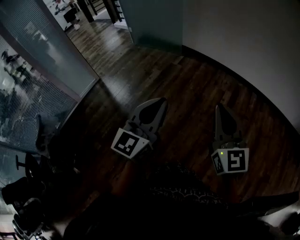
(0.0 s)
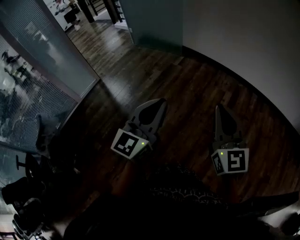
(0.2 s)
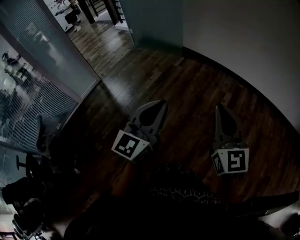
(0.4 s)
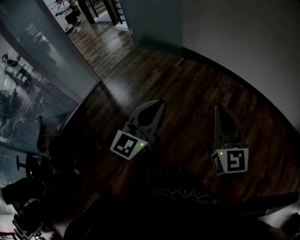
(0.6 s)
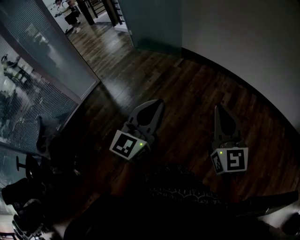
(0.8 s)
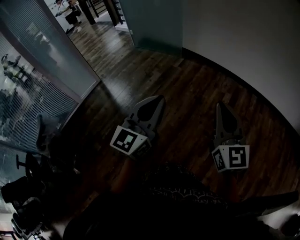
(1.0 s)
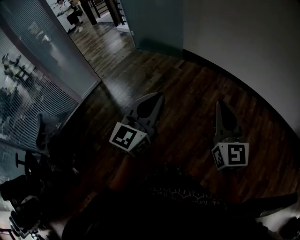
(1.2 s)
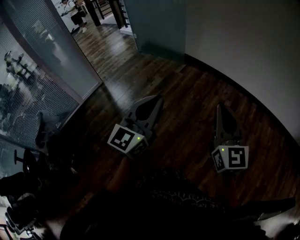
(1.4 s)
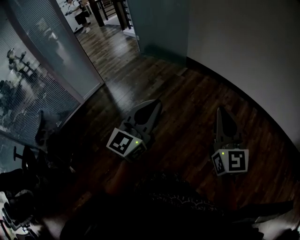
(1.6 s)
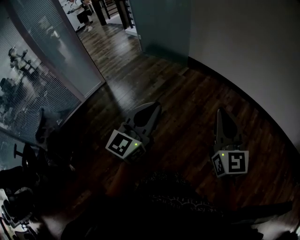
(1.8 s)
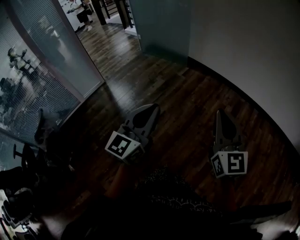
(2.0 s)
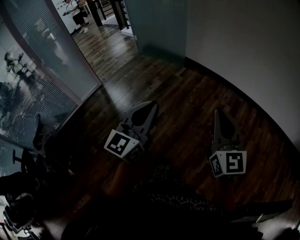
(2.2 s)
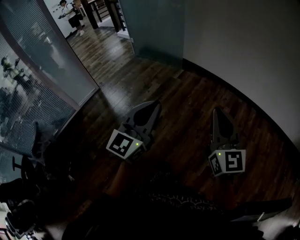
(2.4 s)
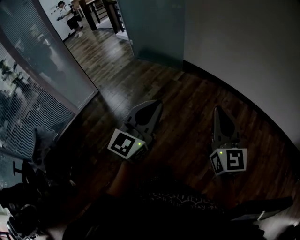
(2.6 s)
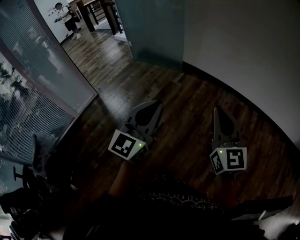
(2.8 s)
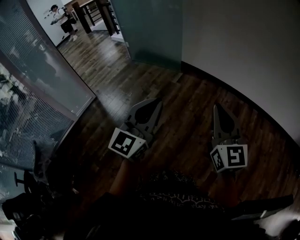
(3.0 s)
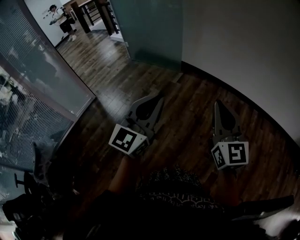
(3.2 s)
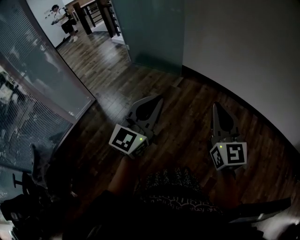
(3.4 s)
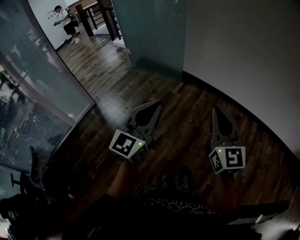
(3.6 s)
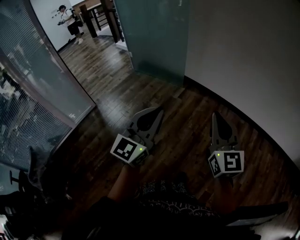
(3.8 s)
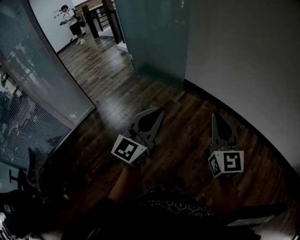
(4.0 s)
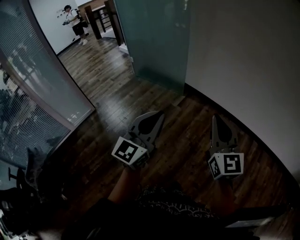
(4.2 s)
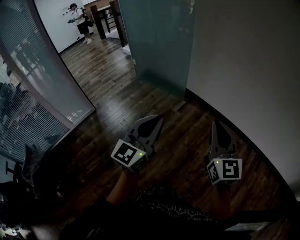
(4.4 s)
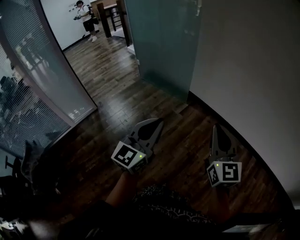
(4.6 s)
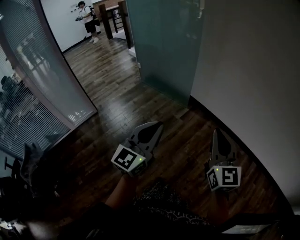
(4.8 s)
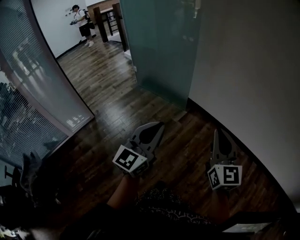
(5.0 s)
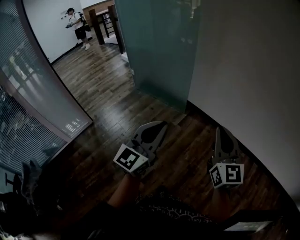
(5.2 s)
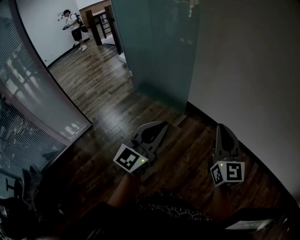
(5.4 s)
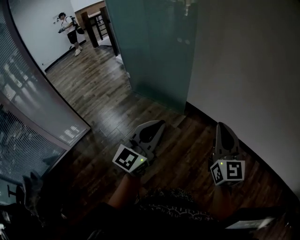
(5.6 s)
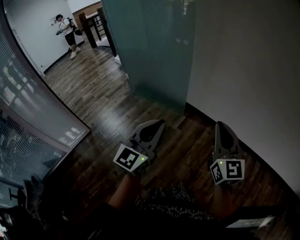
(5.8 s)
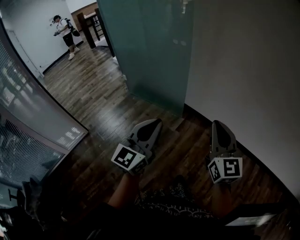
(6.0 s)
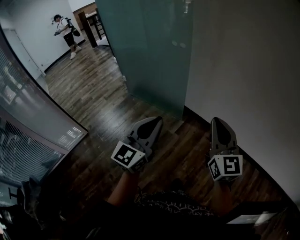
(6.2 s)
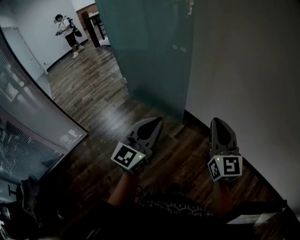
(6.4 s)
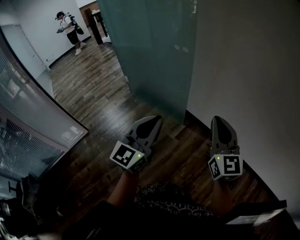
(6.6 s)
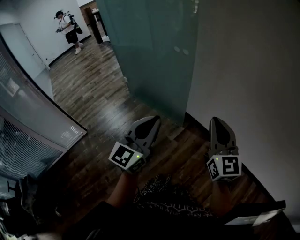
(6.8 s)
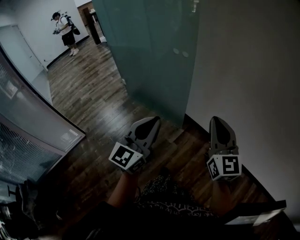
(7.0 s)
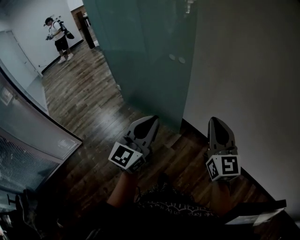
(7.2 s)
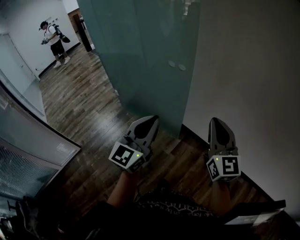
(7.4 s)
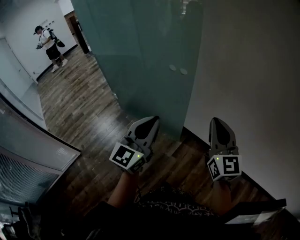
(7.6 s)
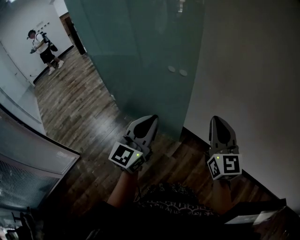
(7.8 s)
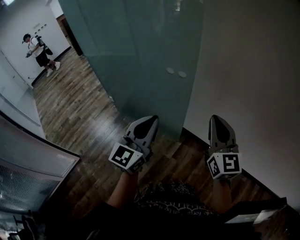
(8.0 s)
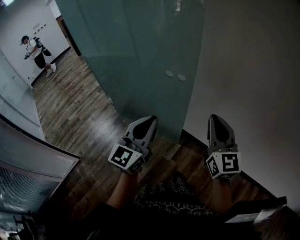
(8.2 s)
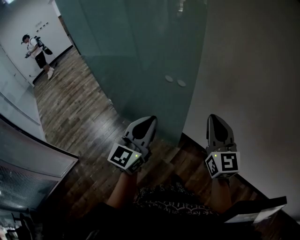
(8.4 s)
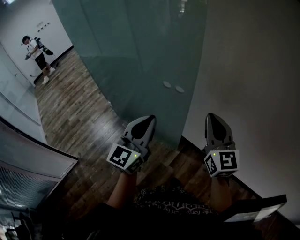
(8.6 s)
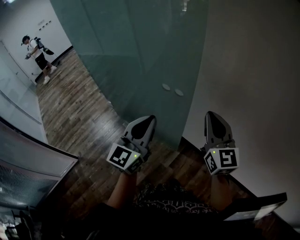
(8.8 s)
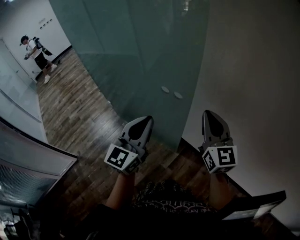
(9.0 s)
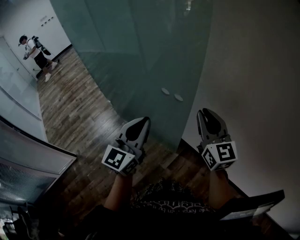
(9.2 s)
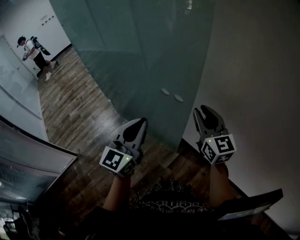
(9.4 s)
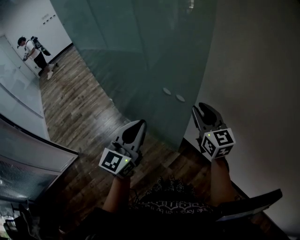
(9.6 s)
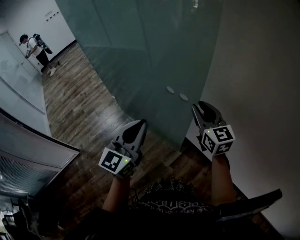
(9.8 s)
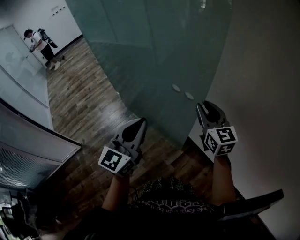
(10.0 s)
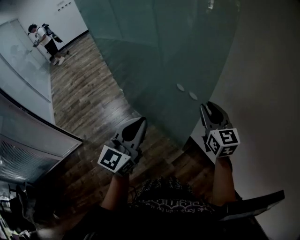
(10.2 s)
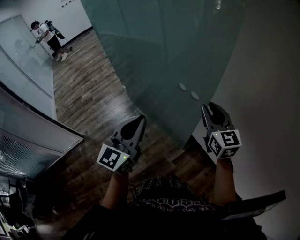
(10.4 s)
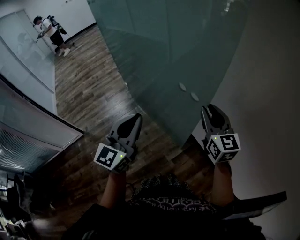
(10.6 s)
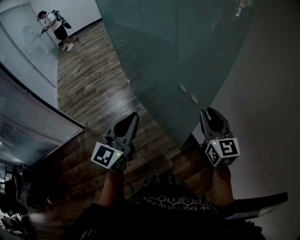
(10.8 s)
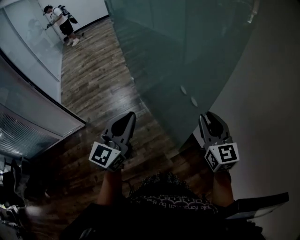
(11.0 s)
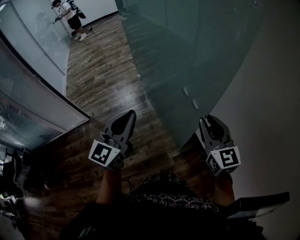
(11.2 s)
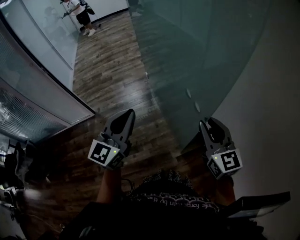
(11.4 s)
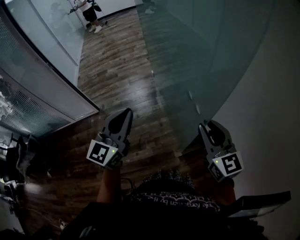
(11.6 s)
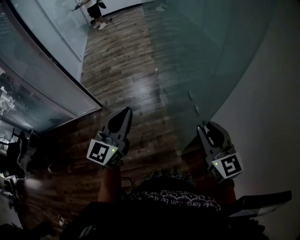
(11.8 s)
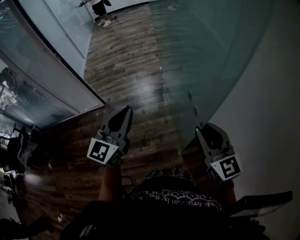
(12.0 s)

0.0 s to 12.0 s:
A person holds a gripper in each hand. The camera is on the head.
0.0 to 1.6 s: The grippers make only small movements.
1.6 to 3.0 s: Both grippers move forward, some 20 cm.
3.0 to 4.4 s: The grippers both shift forward by approximately 25 cm.
4.4 to 6.0 s: Both grippers travel together forward, about 30 cm.
6.0 to 7.6 s: Both grippers move forward, about 35 cm.
7.6 to 9.0 s: The two grippers go some 20 cm forward.
9.0 to 10.4 s: The left gripper goes about 5 cm to the left, while the right gripper moves forward and downward, about 10 cm, and opens up.
10.4 to 12.0 s: The right gripper changes place by about 20 cm, and changes its angle by roughly 30 degrees, while the left gripper shifts by about 20 cm, and changes its angle by about 30 degrees.

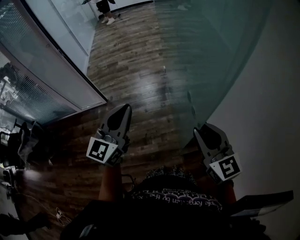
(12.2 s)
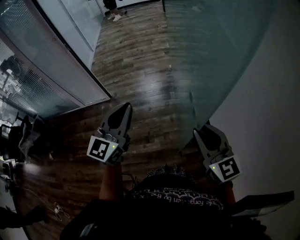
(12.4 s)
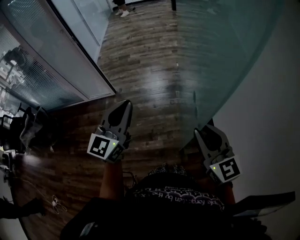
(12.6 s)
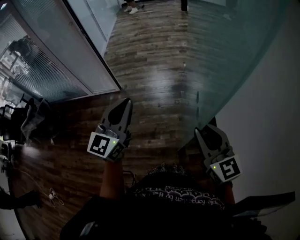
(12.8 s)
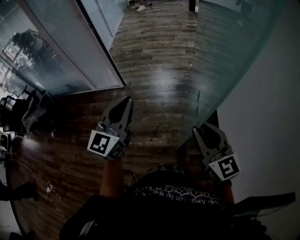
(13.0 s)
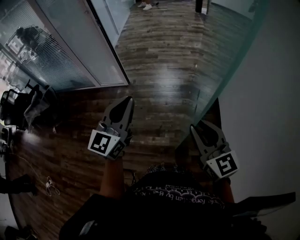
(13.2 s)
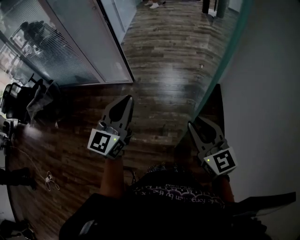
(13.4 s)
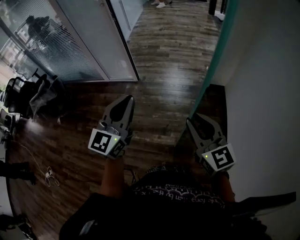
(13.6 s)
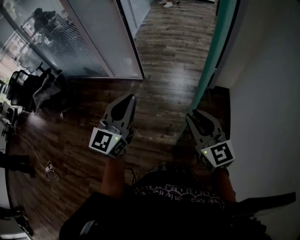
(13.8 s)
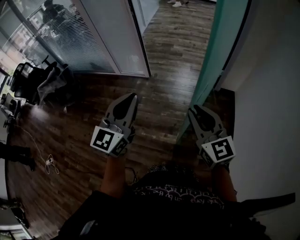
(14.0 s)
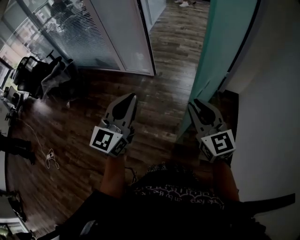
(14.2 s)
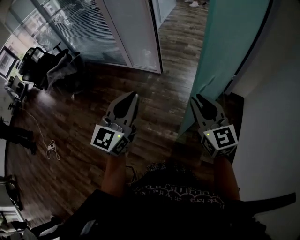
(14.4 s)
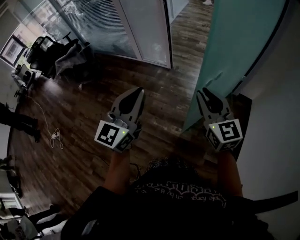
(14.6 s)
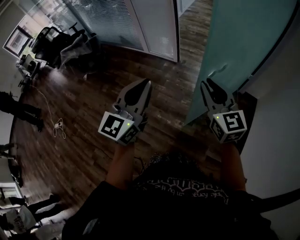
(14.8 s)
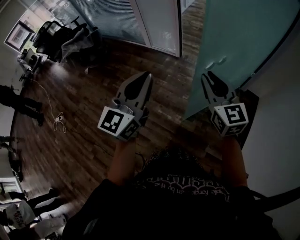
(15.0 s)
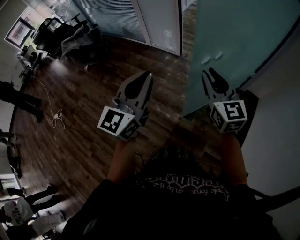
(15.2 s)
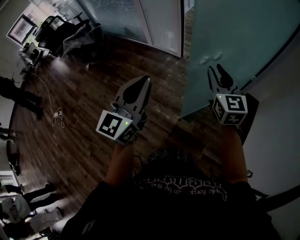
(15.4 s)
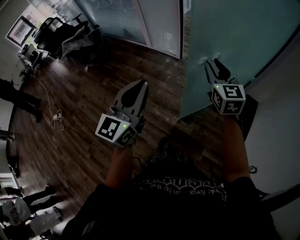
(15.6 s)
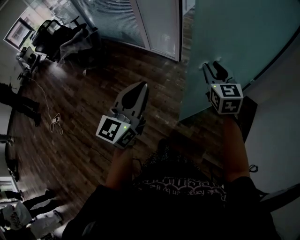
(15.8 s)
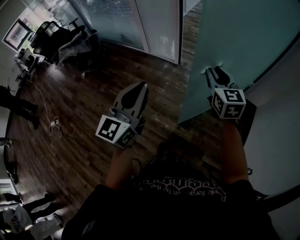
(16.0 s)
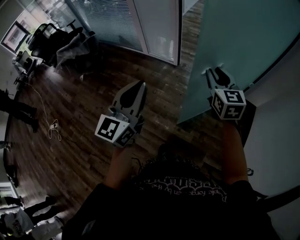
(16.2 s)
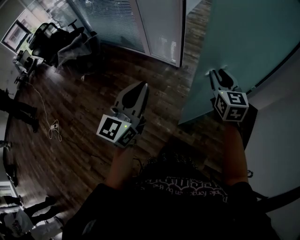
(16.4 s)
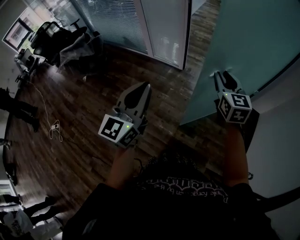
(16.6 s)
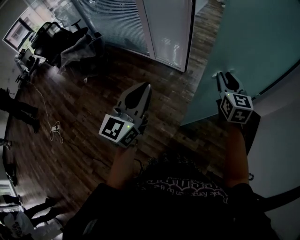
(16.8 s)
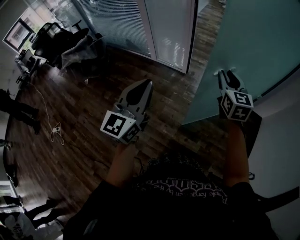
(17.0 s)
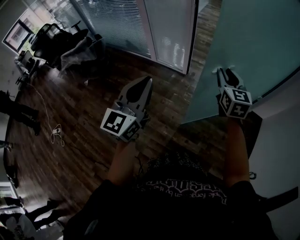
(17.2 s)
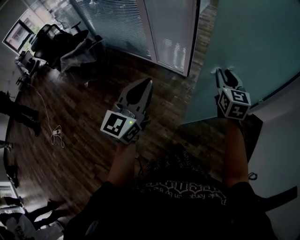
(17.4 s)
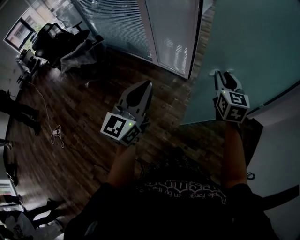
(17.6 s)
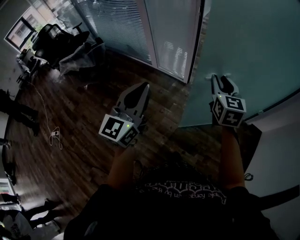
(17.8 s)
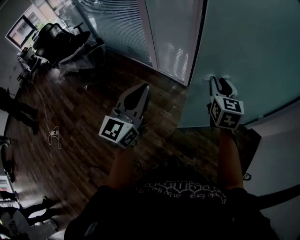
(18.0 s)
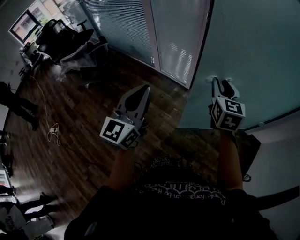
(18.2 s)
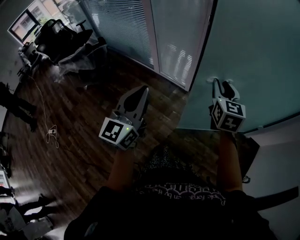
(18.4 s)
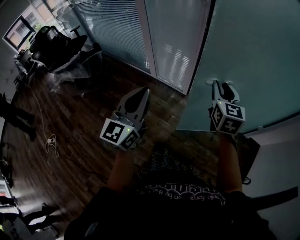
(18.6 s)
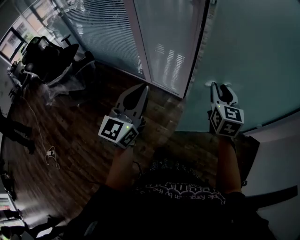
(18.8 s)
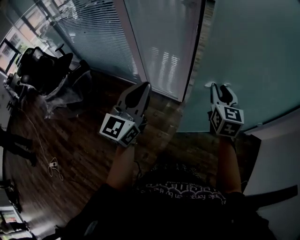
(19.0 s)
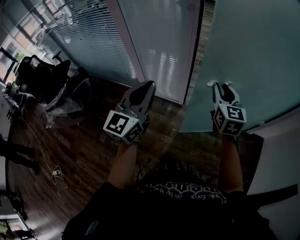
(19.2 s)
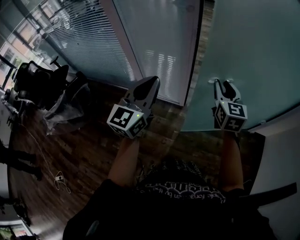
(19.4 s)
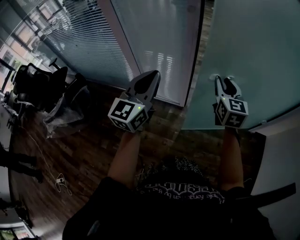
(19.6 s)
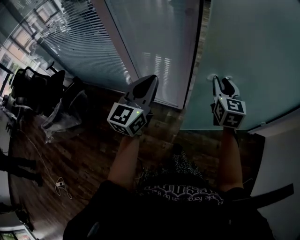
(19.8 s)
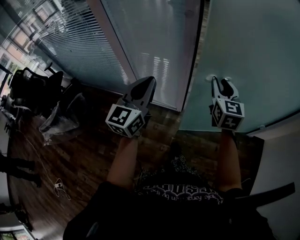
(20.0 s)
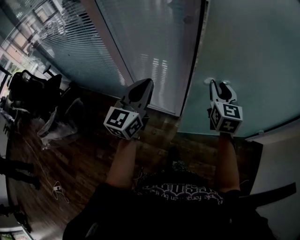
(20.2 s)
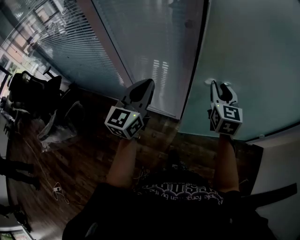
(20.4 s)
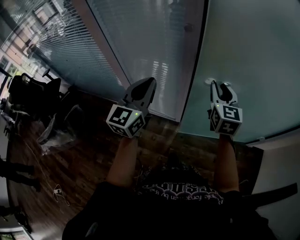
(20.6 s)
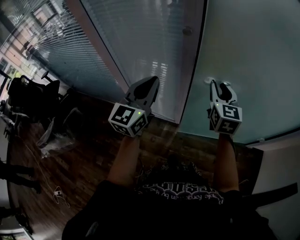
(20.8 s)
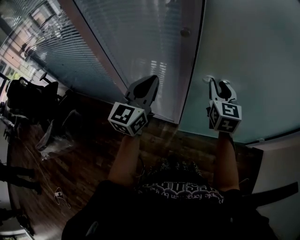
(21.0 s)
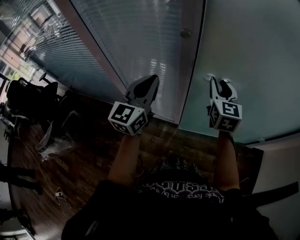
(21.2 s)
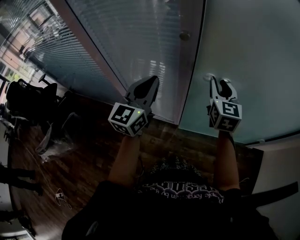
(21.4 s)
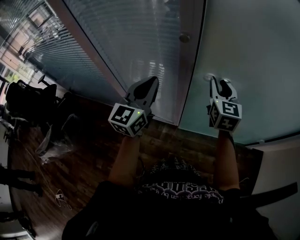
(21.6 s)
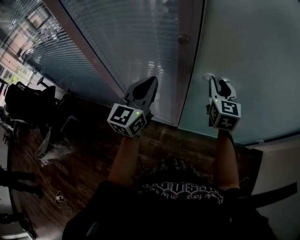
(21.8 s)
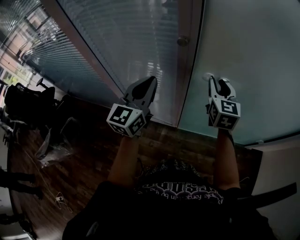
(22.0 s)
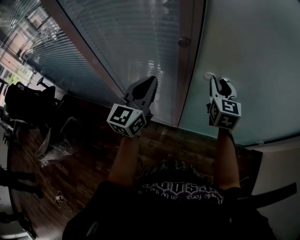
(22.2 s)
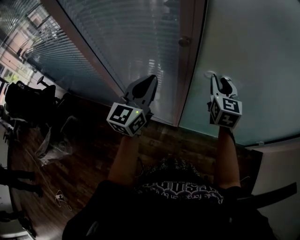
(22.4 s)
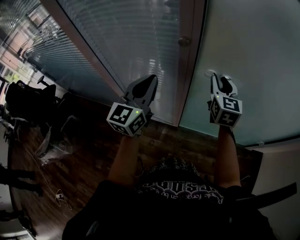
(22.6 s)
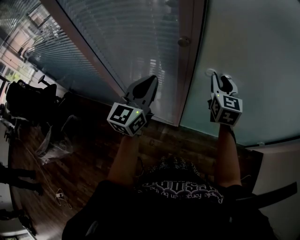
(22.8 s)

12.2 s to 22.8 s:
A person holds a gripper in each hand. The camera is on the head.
12.2 to 13.8 s: The grippers both shift to the left by roughly 25 cm. The left gripper rotates about 20 degrees. Meanwhile the right gripper swivels some 20 degrees.
13.8 to 15.2 s: The left gripper moves to the left, about 5 cm. The right gripper is displaced forward and to the left by roughly 15 cm.
15.2 to 16.8 s: The right gripper is displaced forward by roughly 20 cm; the left gripper is displaced to the left and forward by some 15 cm.
16.8 to 18.2 s: Both grippers move forward, roughly 20 cm.
18.2 to 19.8 s: Both grippers travel together forward, roughly 30 cm.
19.8 to 21.2 s: The grippers both shift forward by approximately 20 cm.
21.2 to 22.8 s: The right gripper travels forward by some 5 cm.

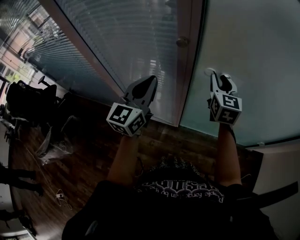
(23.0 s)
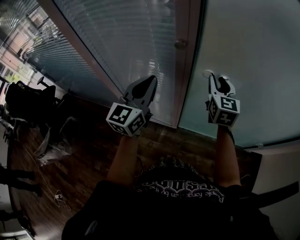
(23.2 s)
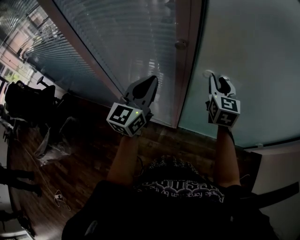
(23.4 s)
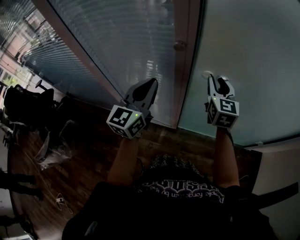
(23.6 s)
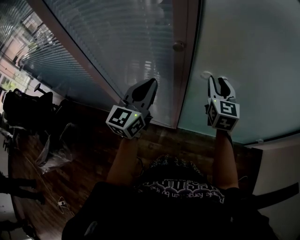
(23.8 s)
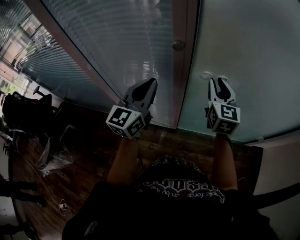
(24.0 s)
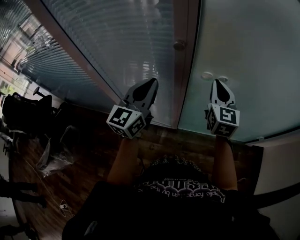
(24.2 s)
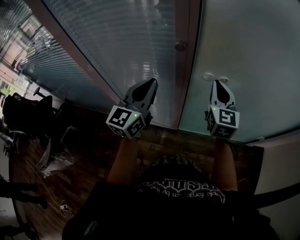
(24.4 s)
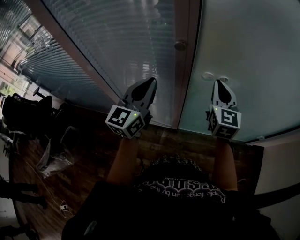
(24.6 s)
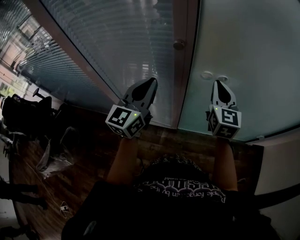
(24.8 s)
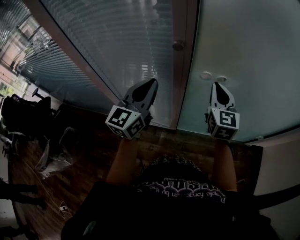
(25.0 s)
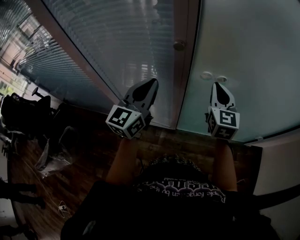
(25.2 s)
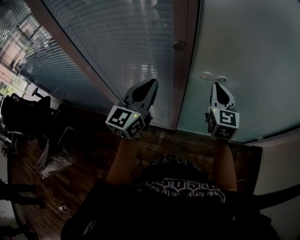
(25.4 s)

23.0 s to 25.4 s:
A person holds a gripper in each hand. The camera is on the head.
23.0 to 24.2 s: The right gripper closes.
24.2 to 25.4 s: Both grippers stay about where they are.
